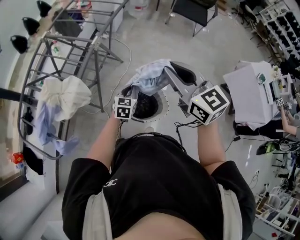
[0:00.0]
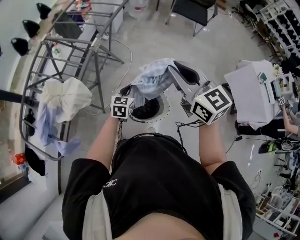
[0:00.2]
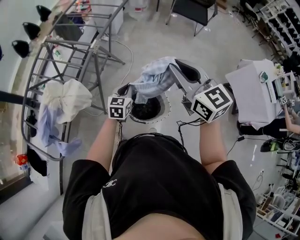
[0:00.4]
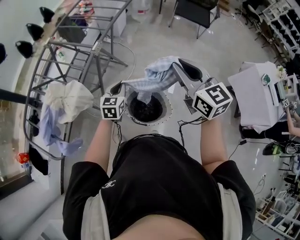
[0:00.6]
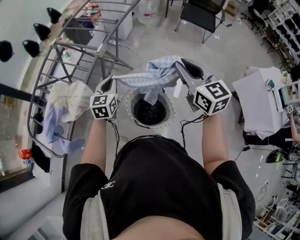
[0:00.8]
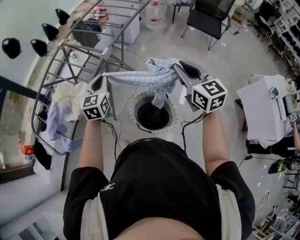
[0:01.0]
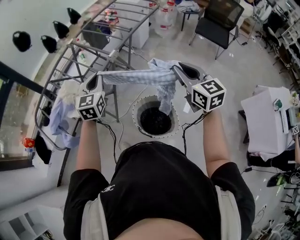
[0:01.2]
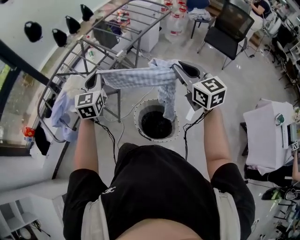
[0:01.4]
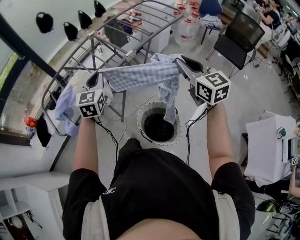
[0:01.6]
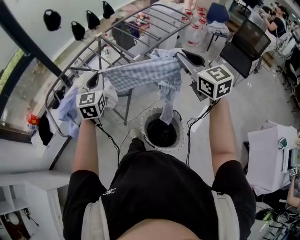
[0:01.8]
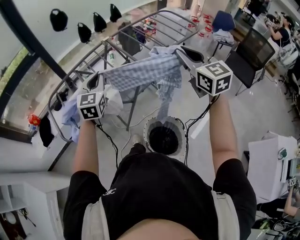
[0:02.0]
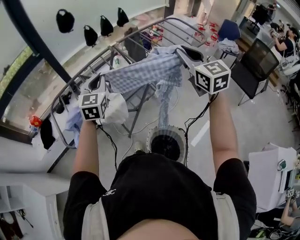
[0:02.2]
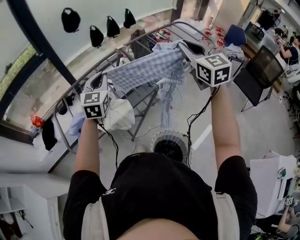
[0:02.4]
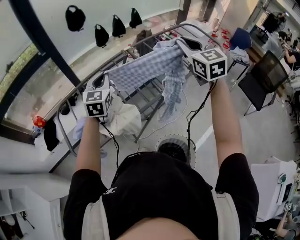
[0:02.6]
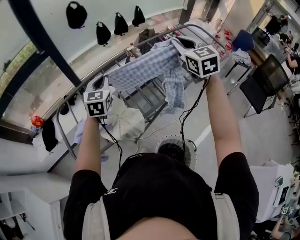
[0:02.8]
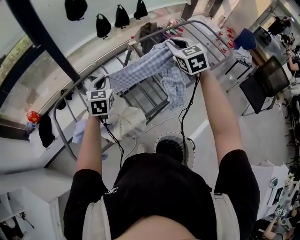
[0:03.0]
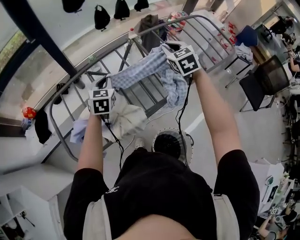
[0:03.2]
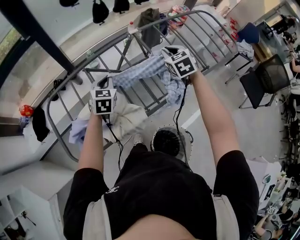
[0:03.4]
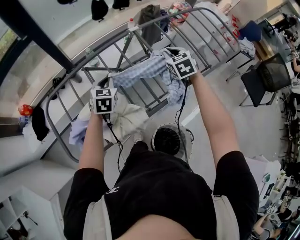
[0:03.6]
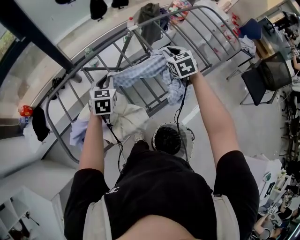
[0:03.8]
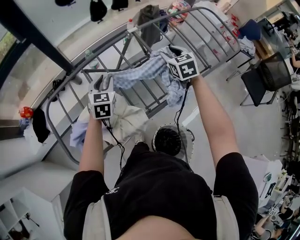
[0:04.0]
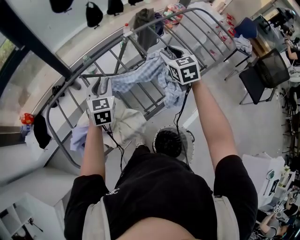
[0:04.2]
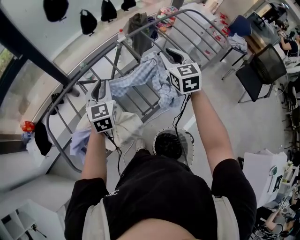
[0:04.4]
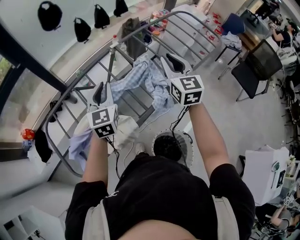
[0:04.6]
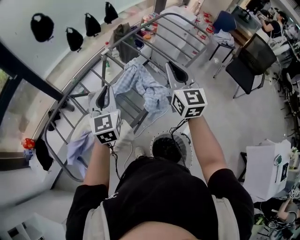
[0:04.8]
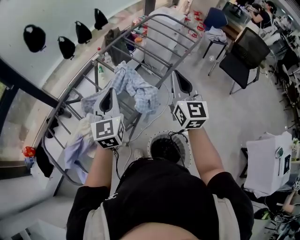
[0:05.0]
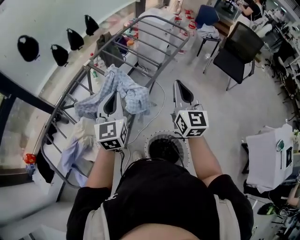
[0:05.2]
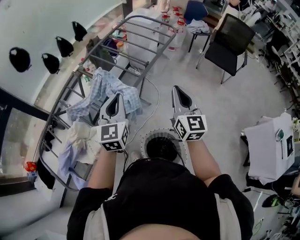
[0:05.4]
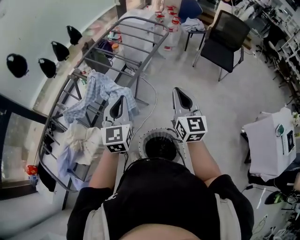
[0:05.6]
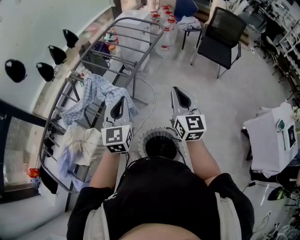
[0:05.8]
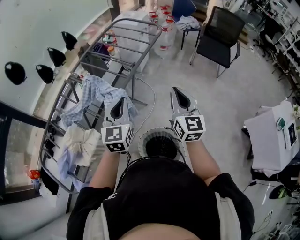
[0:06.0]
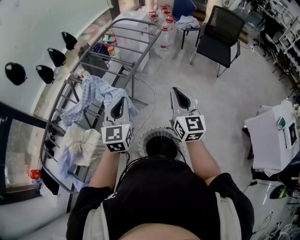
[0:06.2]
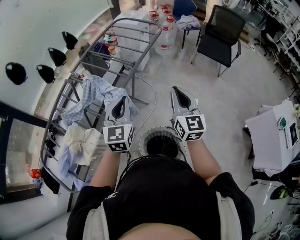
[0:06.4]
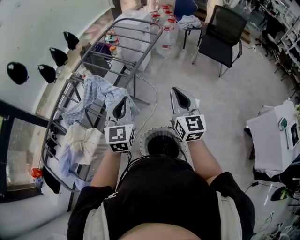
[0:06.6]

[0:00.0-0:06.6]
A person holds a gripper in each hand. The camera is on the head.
0:00.0 to 0:01.6: The left gripper shifts about 25 cm upward, and swivels some 40 degrees. The right gripper ends up about 10 cm from where it was.
0:01.6 to 0:03.2: The left gripper travels forward and to the left by some 35 cm, and swivels about 20 degrees. The right gripper is displaced forward and to the left by approximately 50 cm, and swivels about 30 degrees.
0:03.2 to 0:05.0: The right gripper travels backward, to the right and upward by approximately 25 cm, tips its fingers upward by some 30 degrees, and opens and closes again, while the left gripper goes some 25 cm to the right, upward and backward, rotates approximately 30 degrees, and opens, then closes once more.
0:05.0 to 0:06.6: The right gripper heads to the right and backward, covering approximately 20 cm, while the left gripper goes roughly 25 cm to the right.

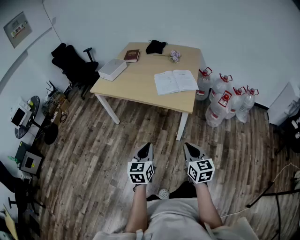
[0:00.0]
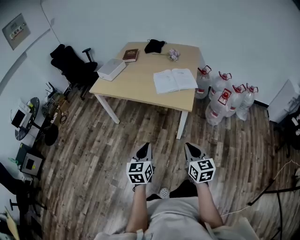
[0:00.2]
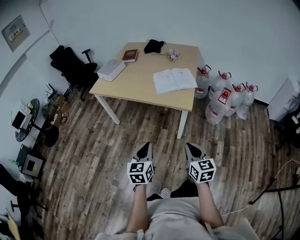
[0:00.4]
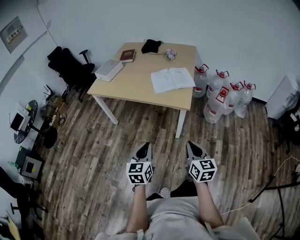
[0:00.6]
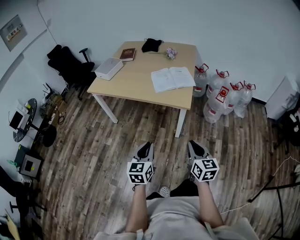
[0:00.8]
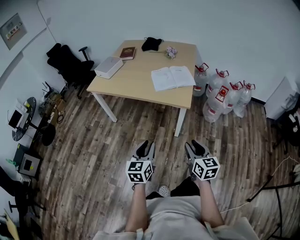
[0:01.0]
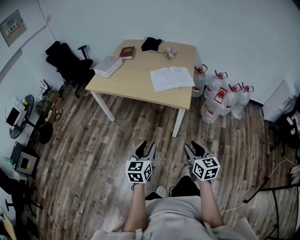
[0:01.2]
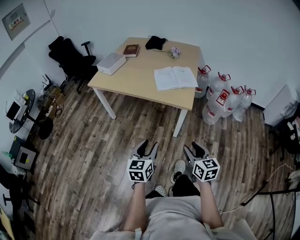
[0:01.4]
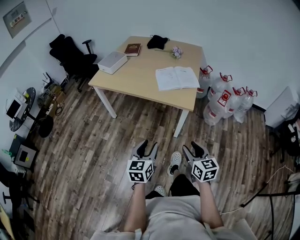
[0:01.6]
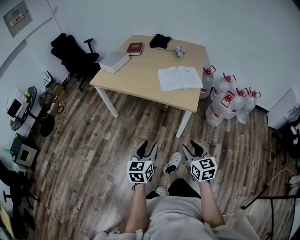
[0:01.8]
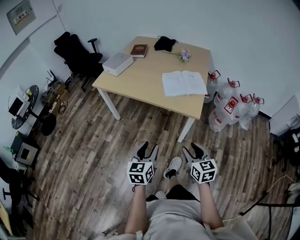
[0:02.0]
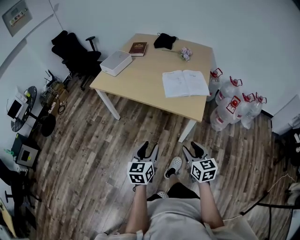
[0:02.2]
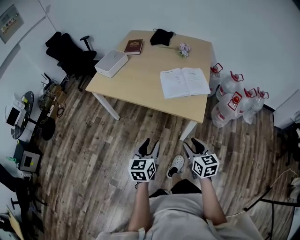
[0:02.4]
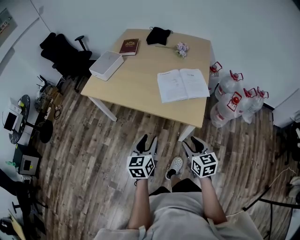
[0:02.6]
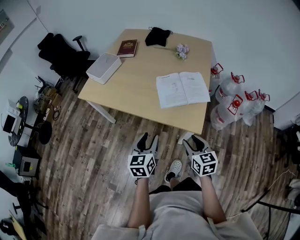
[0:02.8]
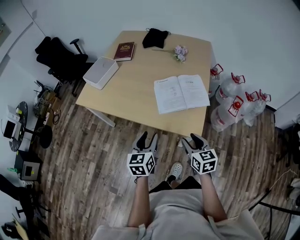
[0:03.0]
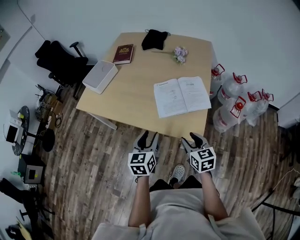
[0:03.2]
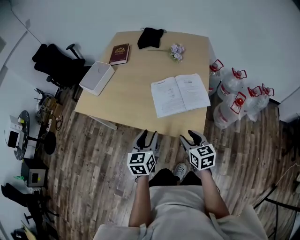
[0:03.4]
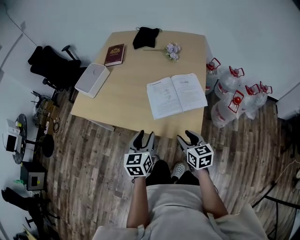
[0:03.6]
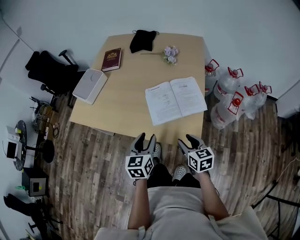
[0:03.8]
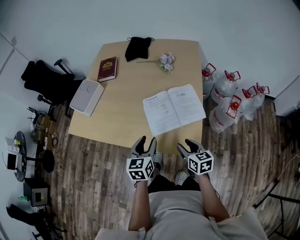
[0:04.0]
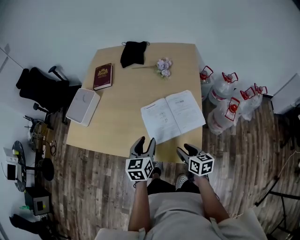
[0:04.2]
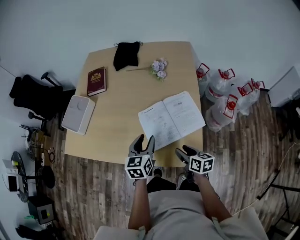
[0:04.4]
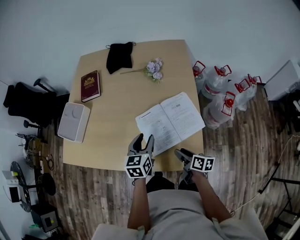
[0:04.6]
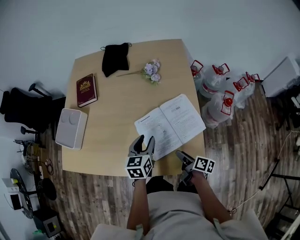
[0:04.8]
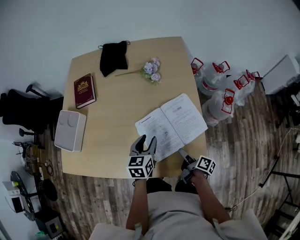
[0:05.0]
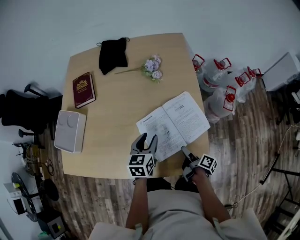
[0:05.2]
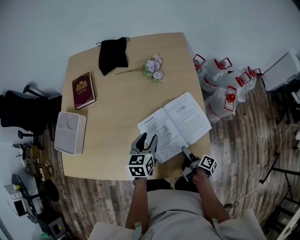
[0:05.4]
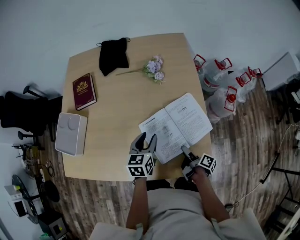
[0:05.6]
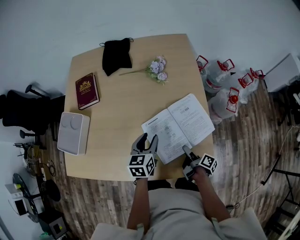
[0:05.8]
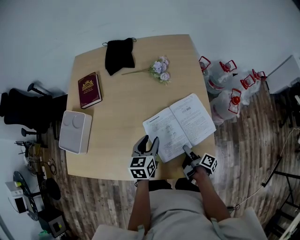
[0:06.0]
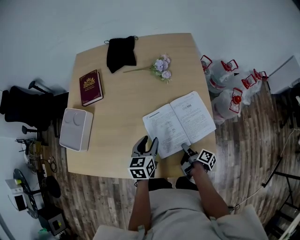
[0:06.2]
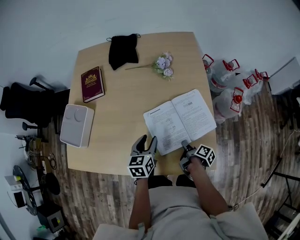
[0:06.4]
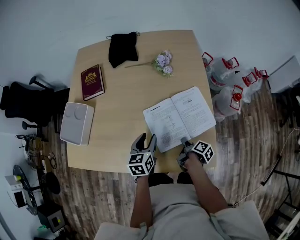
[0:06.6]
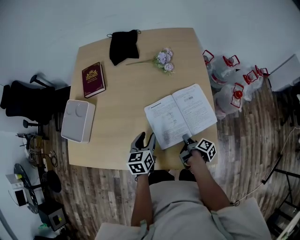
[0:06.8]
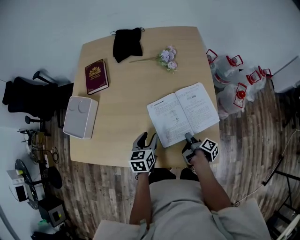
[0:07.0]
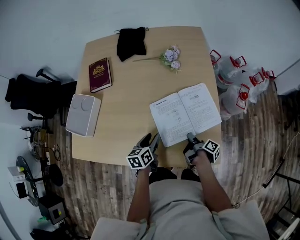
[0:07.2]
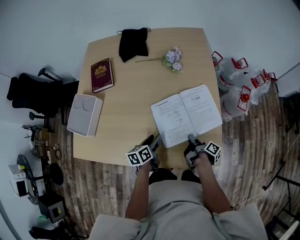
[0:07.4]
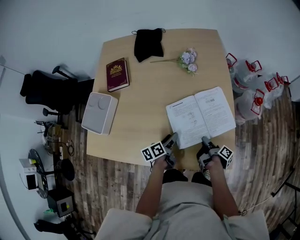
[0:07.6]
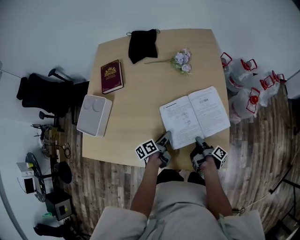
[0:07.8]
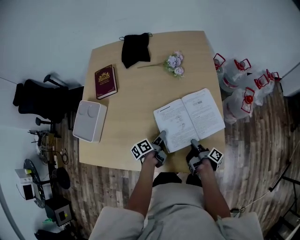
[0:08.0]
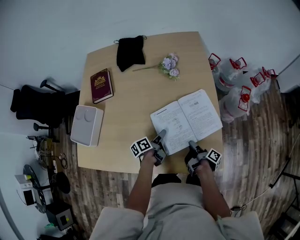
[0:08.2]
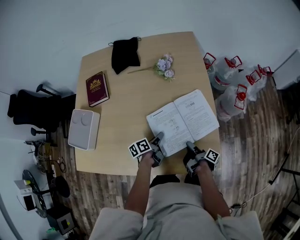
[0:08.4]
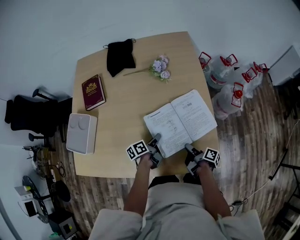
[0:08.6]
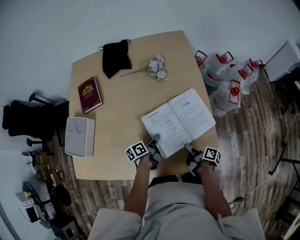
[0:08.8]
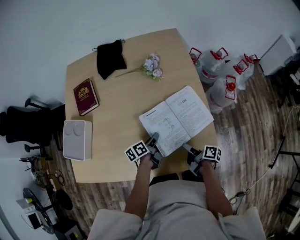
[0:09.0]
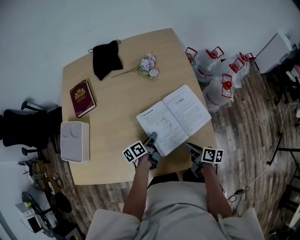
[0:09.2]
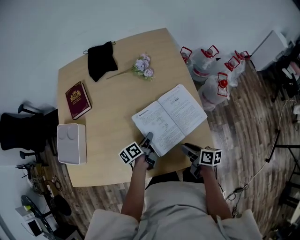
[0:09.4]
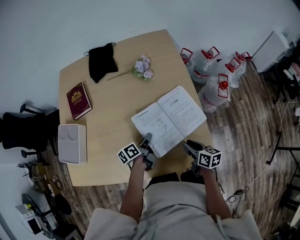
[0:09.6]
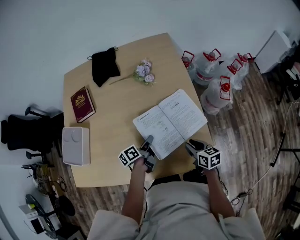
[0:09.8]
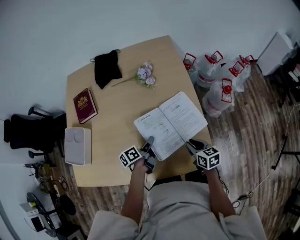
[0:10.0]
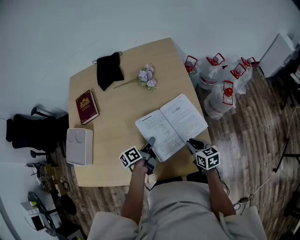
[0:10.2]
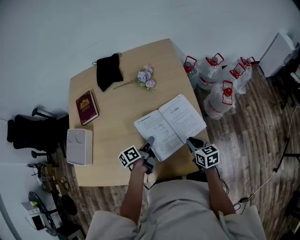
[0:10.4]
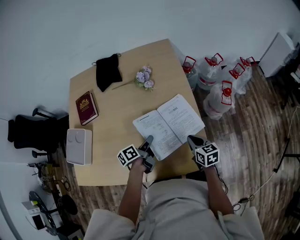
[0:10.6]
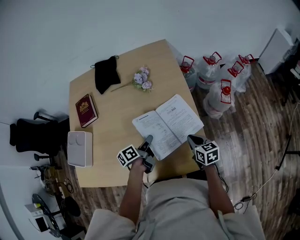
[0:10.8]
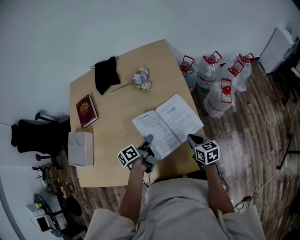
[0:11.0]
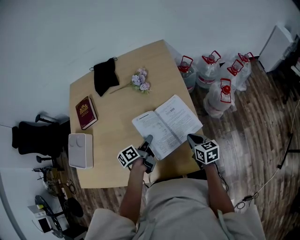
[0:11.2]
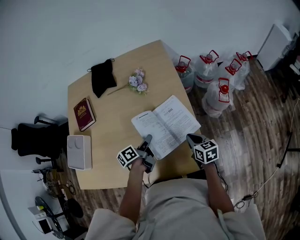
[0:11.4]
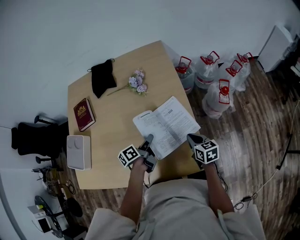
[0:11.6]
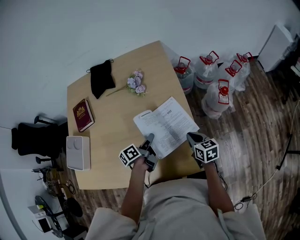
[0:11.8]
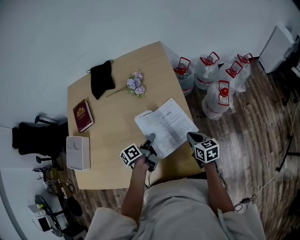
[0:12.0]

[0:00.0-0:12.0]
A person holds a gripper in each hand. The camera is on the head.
0:00.0 to 0:01.6: The right gripper opens up, while the left gripper opens its fingers.
0:01.6 to 0:03.0: Both grippers travel together forward, about 35 cm.
0:03.0 to 0:04.4: The right gripper travels forward and downward by roughly 20 cm, and changes its angle by roughly 30 degrees. The left gripper shifts approximately 25 cm forward.
0:04.4 to 0:06.0: The left gripper travels forward and downward by approximately 10 cm. The right gripper travels downward and forward by approximately 10 cm, and rotates around the line of its fingers by some 60 degrees, clockwise from behind.
0:06.0 to 0:07.6: The left gripper is displaced downward by roughly 10 cm, and rolls counterclockwise, seen from behind, by approximately 40 degrees. The right gripper closes.
0:07.6 to 0:09.0: The right gripper rotates roughly 30 degrees. Meanwhile the left gripper travels forward by about 5 cm, and closes up.
0:09.0 to 0:10.4: The left gripper heads upward, covering about 5 cm, while the right gripper goes some 10 cm to the right and upward, and rolls counterclockwise, seen from behind, by roughly 60 degrees.
0:10.4 to 0:12.0: The two grippers go about 10 cm to the right.

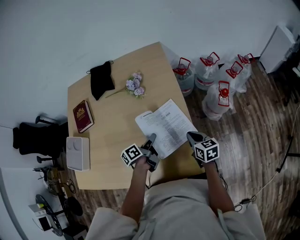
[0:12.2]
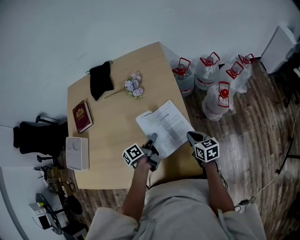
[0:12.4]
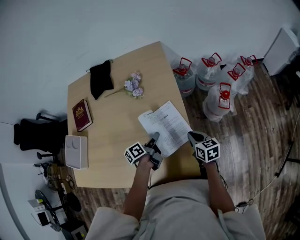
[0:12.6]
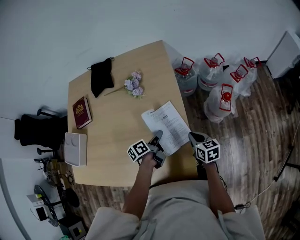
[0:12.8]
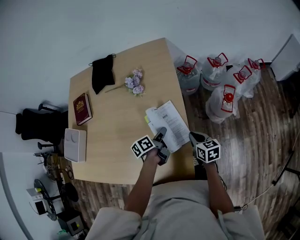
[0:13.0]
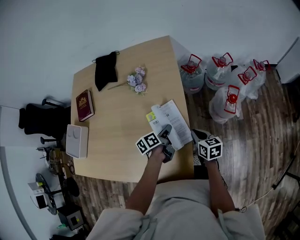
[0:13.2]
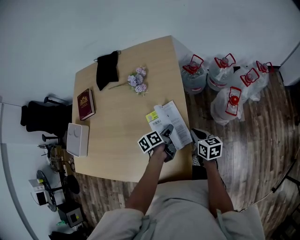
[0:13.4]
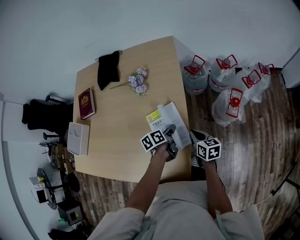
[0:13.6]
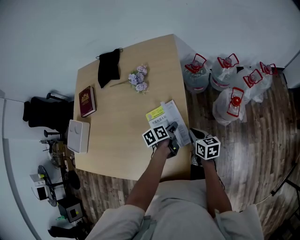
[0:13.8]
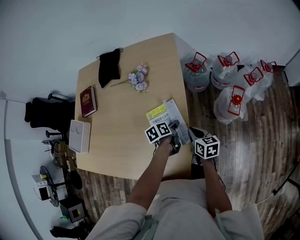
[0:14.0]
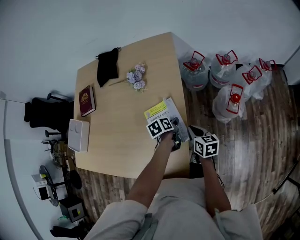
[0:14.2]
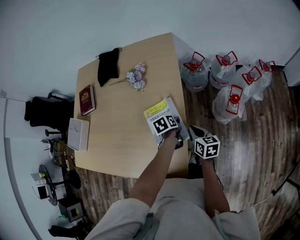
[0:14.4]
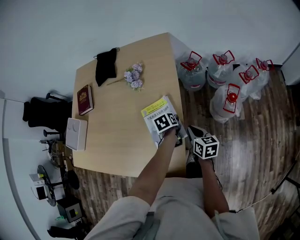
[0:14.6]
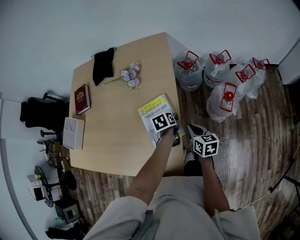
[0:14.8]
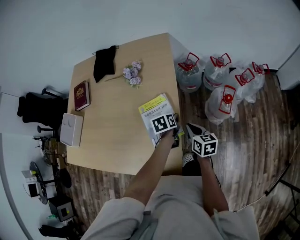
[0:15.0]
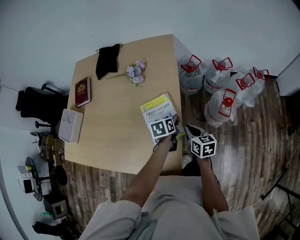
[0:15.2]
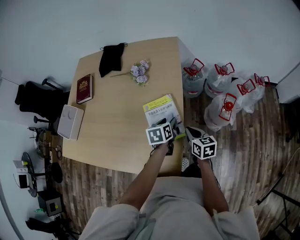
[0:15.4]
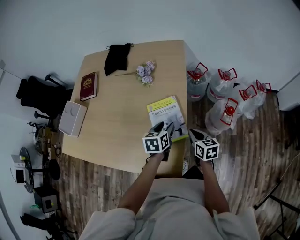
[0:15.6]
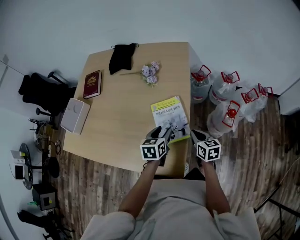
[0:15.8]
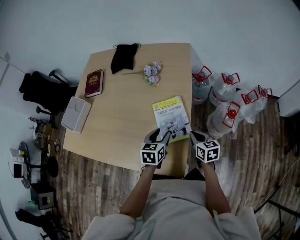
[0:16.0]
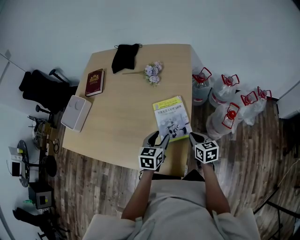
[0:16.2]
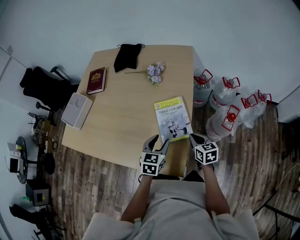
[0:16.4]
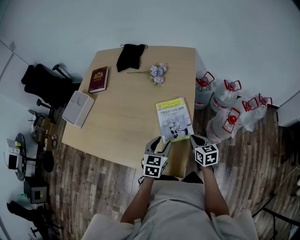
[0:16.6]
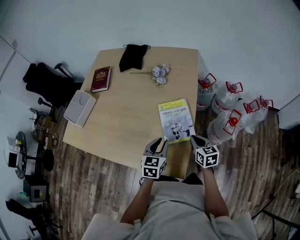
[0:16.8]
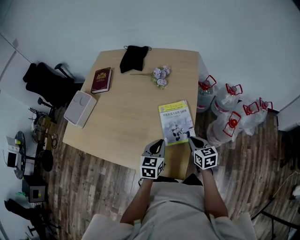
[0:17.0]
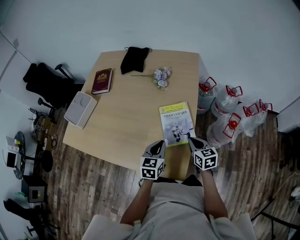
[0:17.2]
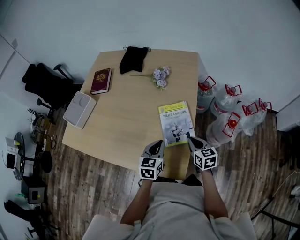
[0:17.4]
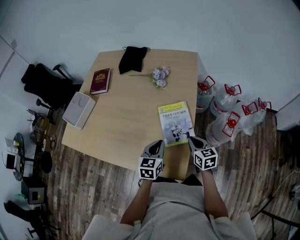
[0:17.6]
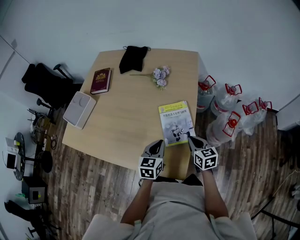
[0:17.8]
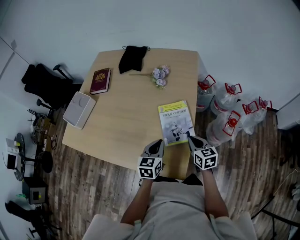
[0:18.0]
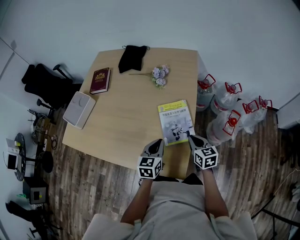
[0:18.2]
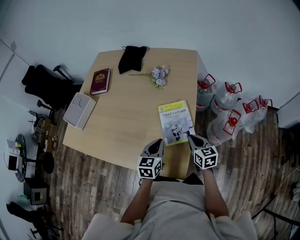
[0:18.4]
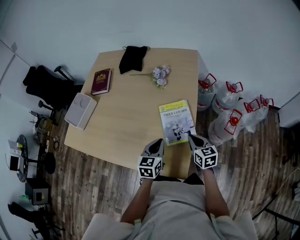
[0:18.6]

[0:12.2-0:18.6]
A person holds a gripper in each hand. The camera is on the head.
0:12.2 to 0:13.8: The right gripper travels forward and to the right by about 10 cm, while the left gripper shifts approximately 20 cm to the right, downward and forward, and changes its angle by roughly 20 degrees.
0:13.8 to 0:15.4: The left gripper is displaced upward by about 5 cm, turns by roughly 30 degrees, and opens up.
0:15.4 to 0:17.0: The left gripper moves to the left, backward and upward, approximately 20 cm, changes its angle by roughly 30 degrees, and closes its fingers. Meanwhile the right gripper moves to the left, some 5 cm.
0:17.0 to 0:18.6: There are only small adjustments of the grippers.
